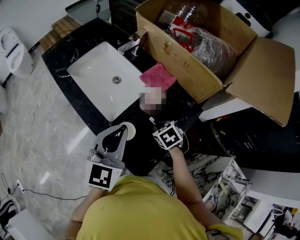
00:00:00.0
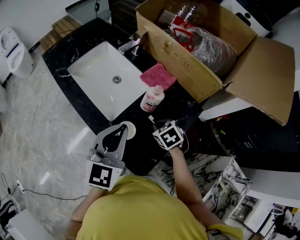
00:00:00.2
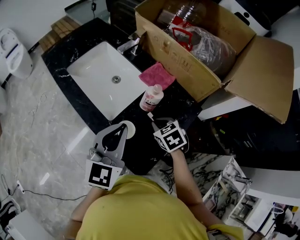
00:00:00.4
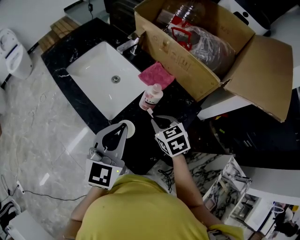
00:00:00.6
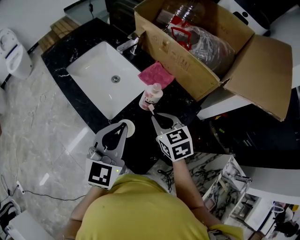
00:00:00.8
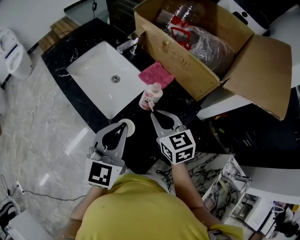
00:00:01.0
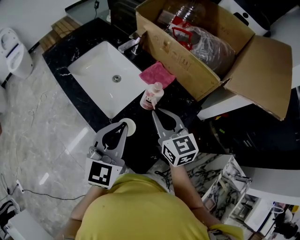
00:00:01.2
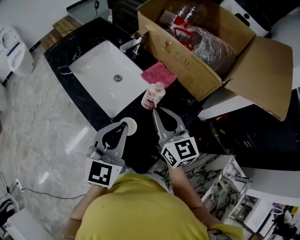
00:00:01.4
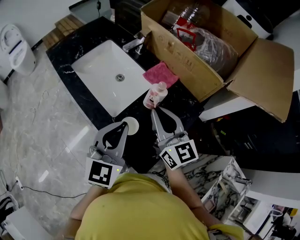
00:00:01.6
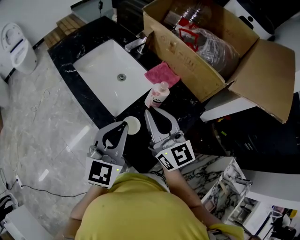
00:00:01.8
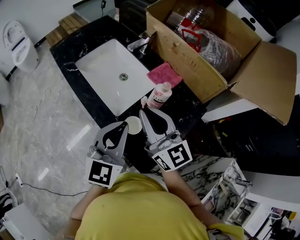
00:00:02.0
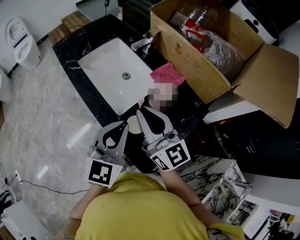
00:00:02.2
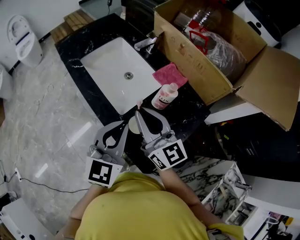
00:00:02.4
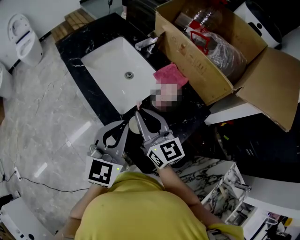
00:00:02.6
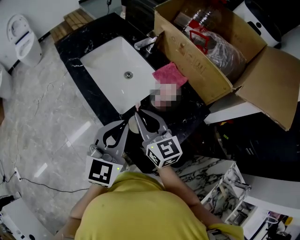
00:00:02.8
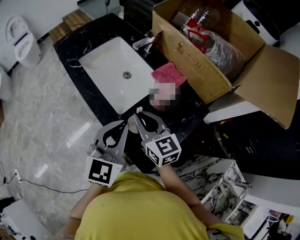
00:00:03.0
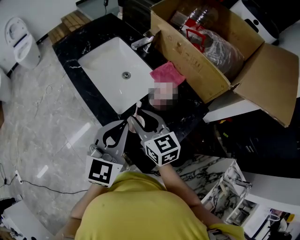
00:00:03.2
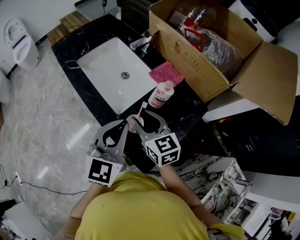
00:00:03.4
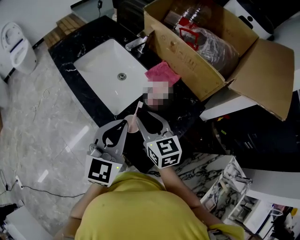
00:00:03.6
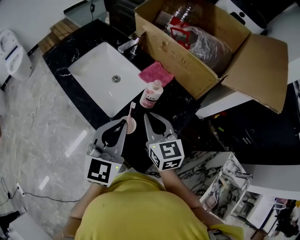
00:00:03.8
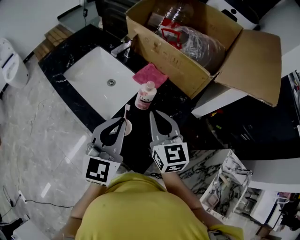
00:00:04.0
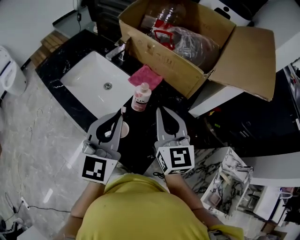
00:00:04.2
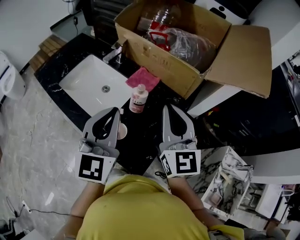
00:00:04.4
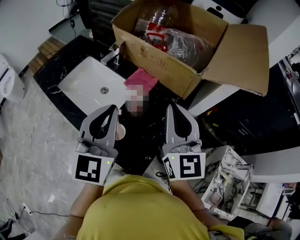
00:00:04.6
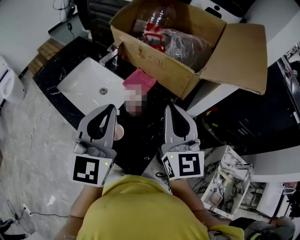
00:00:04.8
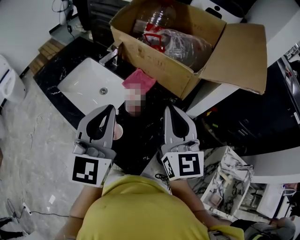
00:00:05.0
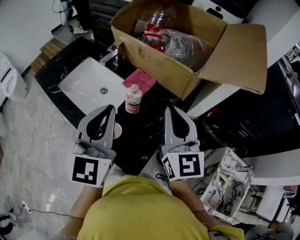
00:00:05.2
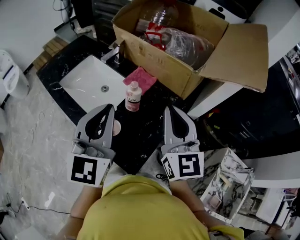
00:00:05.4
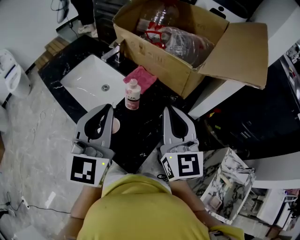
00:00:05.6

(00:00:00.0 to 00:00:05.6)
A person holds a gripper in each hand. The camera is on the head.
00:00:00.0 - 00:00:01.4: The right gripper shifts some 20 cm upward, and points its fingers approximately 60 degrees further upward.
00:00:01.4 - 00:00:02.8: The right gripper goes approximately 10 cm to the left.
00:00:02.8 - 00:00:04.2: The left gripper travels upward and to the right by some 10 cm. The right gripper shifts approximately 15 cm to the right and upward, swivels roughly 30 degrees, and opens, then closes once more.
00:00:04.2 - 00:00:05.6: The left gripper shifts roughly 5 cm upward. The right gripper goes some 5 cm to the right.

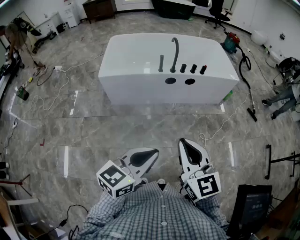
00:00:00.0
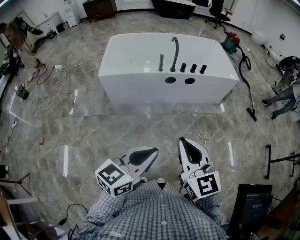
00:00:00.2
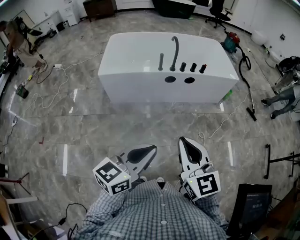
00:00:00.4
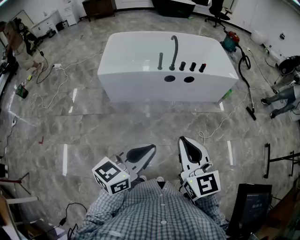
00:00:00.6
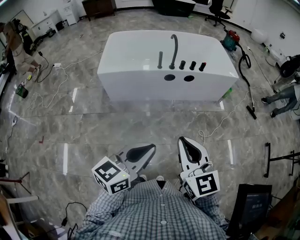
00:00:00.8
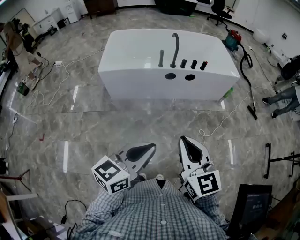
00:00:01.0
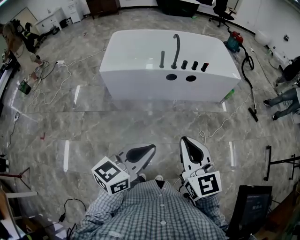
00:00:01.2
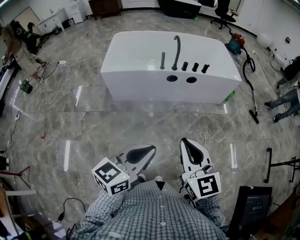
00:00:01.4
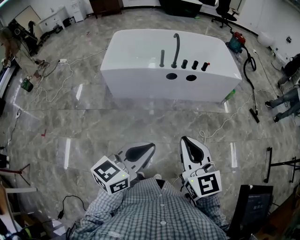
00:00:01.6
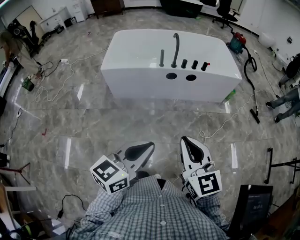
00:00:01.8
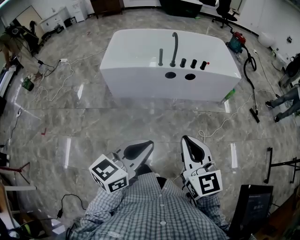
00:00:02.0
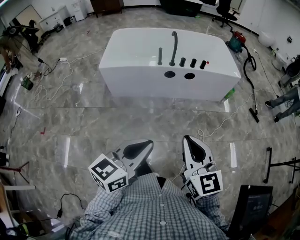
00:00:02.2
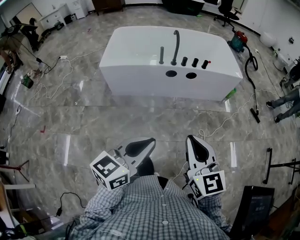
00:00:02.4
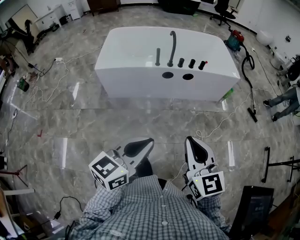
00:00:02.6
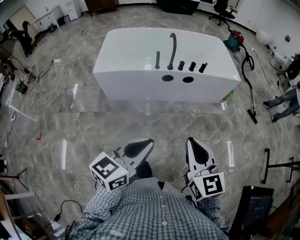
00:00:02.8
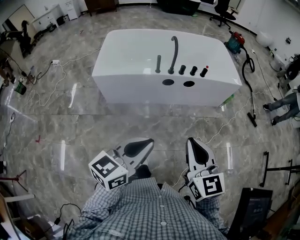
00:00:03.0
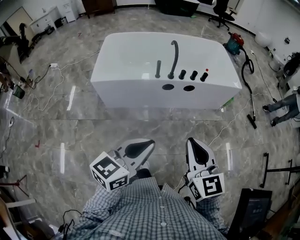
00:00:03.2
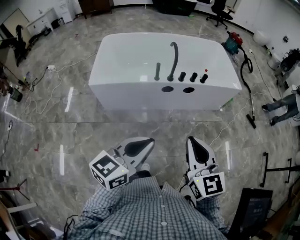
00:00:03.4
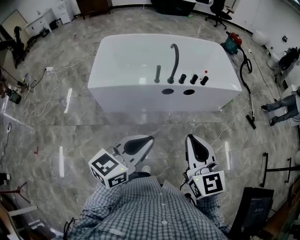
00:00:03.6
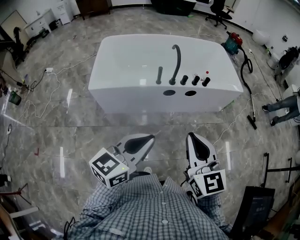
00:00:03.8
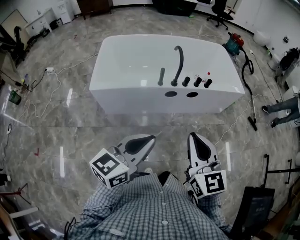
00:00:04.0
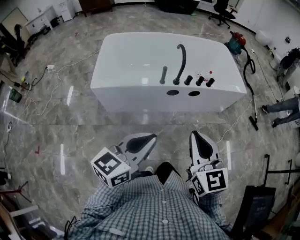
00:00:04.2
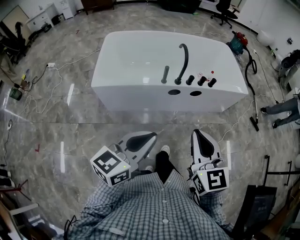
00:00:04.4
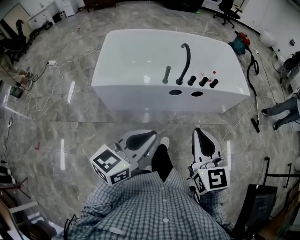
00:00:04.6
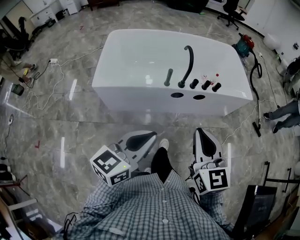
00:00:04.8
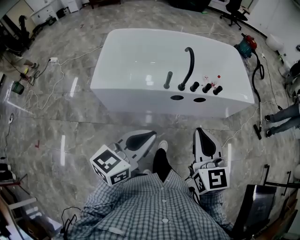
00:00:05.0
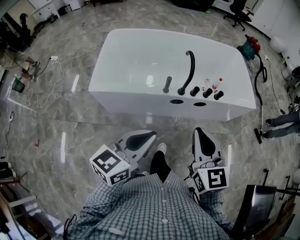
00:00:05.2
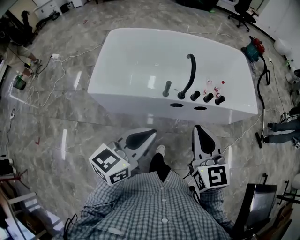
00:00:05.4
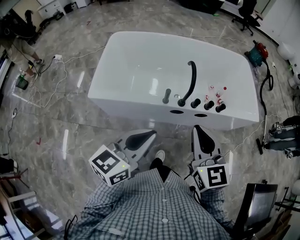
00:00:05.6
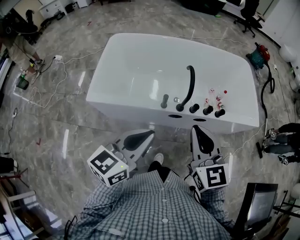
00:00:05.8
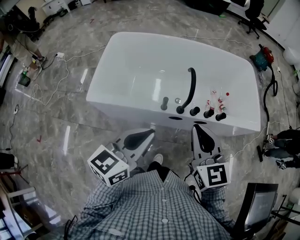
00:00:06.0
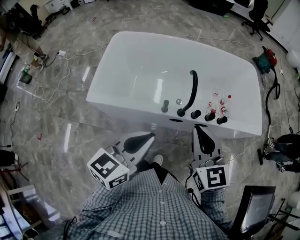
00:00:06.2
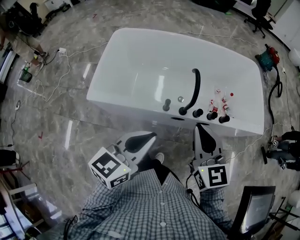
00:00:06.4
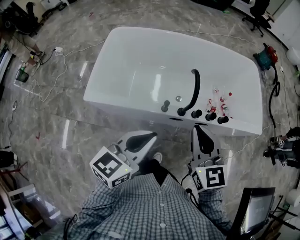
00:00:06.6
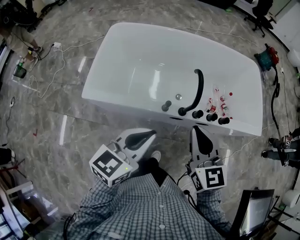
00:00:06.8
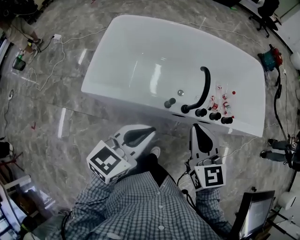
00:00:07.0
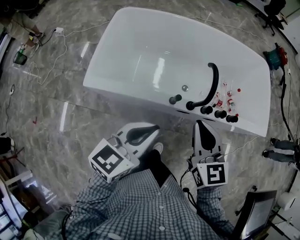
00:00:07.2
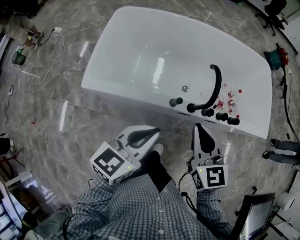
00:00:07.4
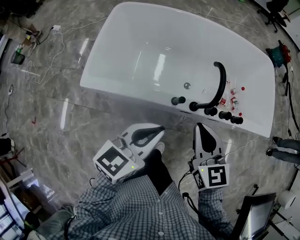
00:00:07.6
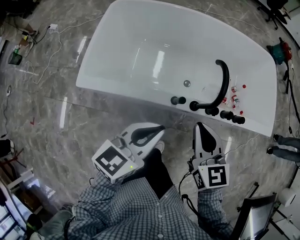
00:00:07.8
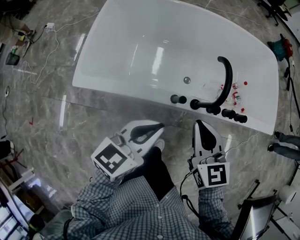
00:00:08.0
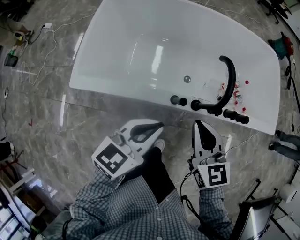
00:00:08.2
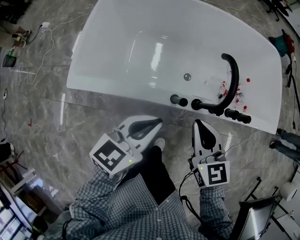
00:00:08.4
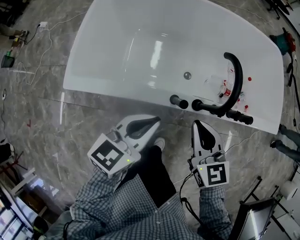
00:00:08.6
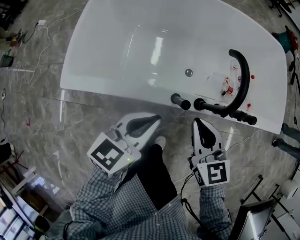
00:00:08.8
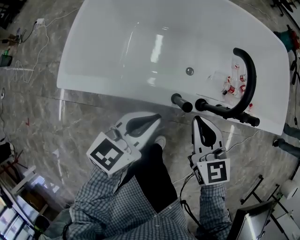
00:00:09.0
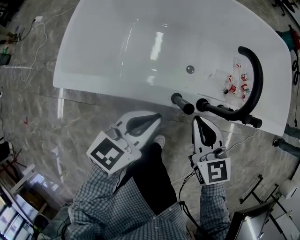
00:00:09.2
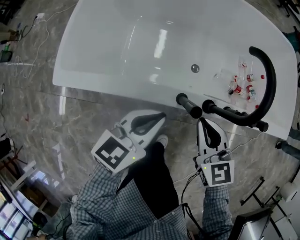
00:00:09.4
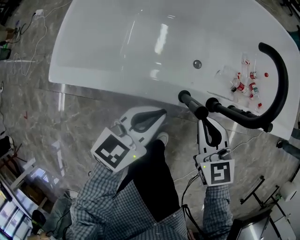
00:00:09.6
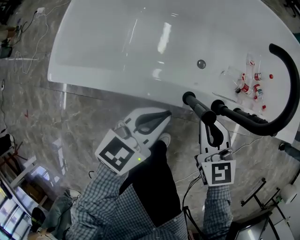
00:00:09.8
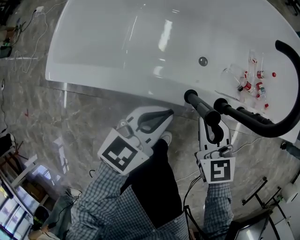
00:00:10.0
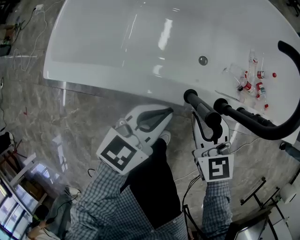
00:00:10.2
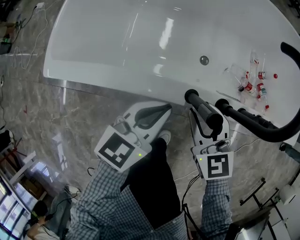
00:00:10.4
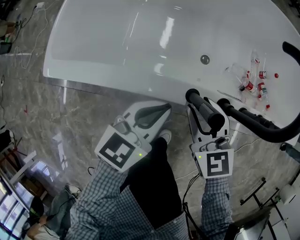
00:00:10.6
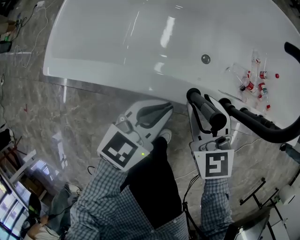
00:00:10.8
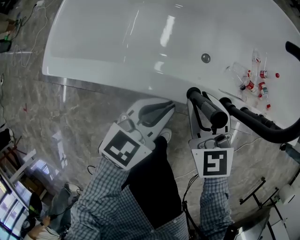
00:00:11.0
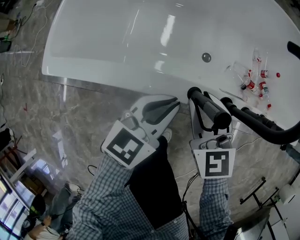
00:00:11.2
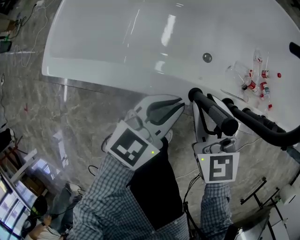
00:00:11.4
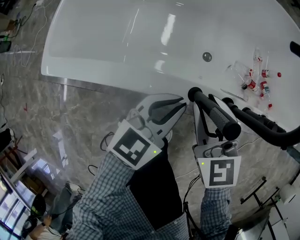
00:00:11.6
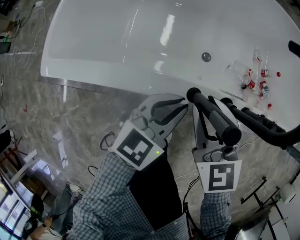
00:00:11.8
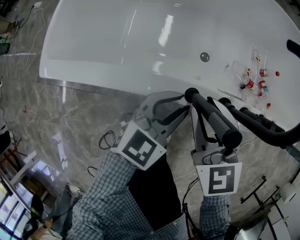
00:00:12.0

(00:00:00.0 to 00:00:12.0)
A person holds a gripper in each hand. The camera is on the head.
00:00:00.0 - 00:00:01.6: The right gripper travels to the right by approximately 5 cm.
00:00:01.6 - 00:00:03.0: The two grippers go some 15 cm forward.
00:00:03.0 - 00:00:04.4: The grippers both shift forward and to the left by some 20 cm.
00:00:04.4 - 00:00:06.0: Both grippers move forward, about 35 cm.
00:00:06.0 - 00:00:07.6: The right gripper heads downward, to the left and forward, covering some 20 cm. The left gripper shifts some 15 cm downward, forward and to the left.
00:00:07.6 - 00:00:09.0: Both grippers travel together downward and forward, about 20 cm.
00:00:09.0 - 00:00:10.4: Both grippers move downward, about 15 cm. The right gripper opens.
00:00:10.4 - 00:00:12.0: The left gripper moves some 5 cm.

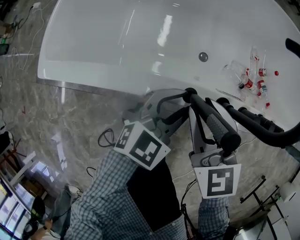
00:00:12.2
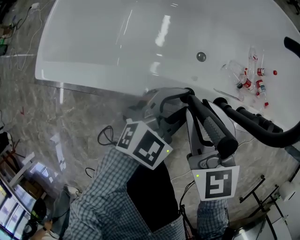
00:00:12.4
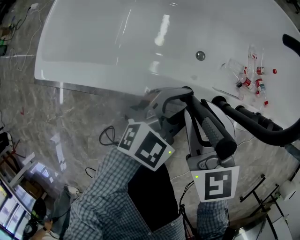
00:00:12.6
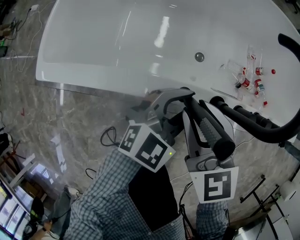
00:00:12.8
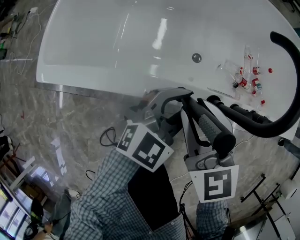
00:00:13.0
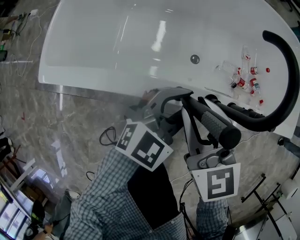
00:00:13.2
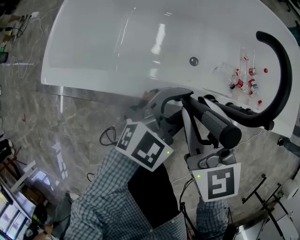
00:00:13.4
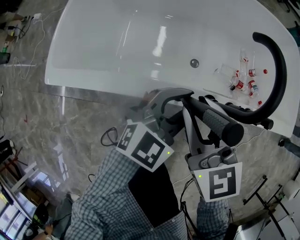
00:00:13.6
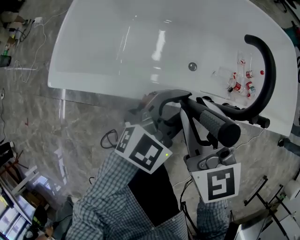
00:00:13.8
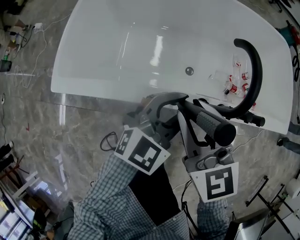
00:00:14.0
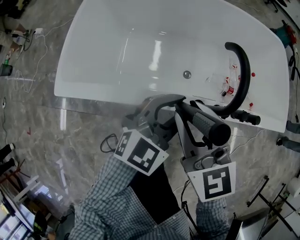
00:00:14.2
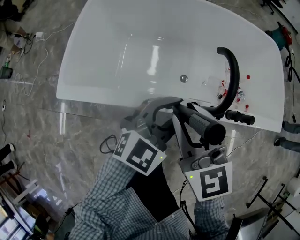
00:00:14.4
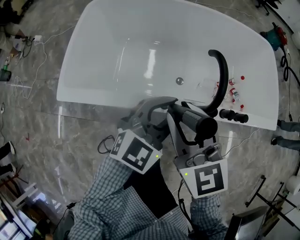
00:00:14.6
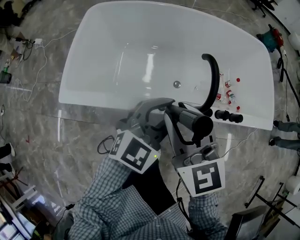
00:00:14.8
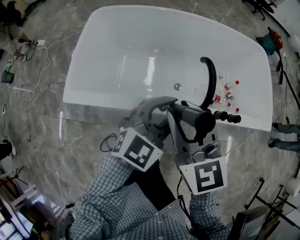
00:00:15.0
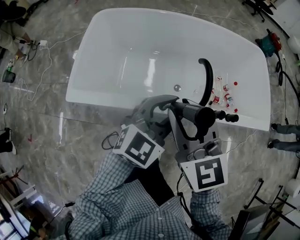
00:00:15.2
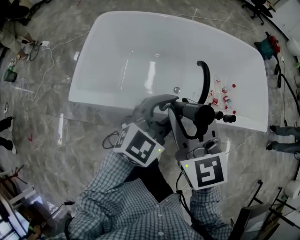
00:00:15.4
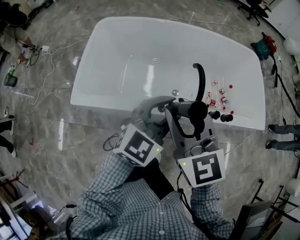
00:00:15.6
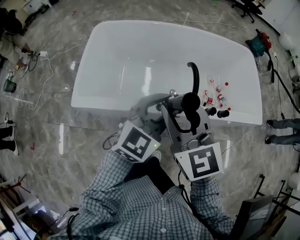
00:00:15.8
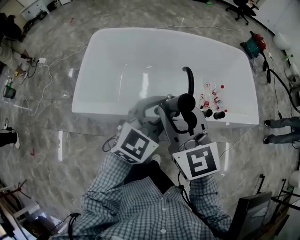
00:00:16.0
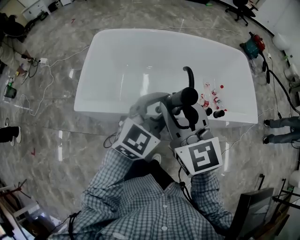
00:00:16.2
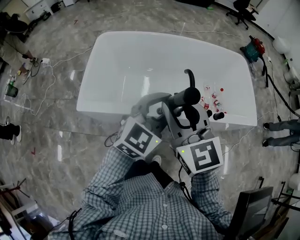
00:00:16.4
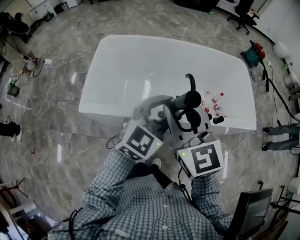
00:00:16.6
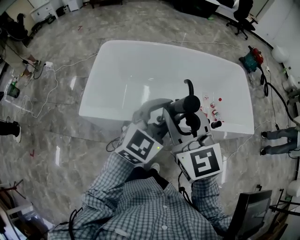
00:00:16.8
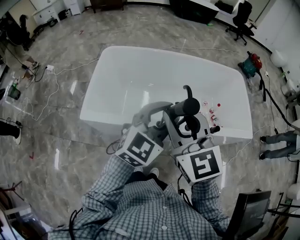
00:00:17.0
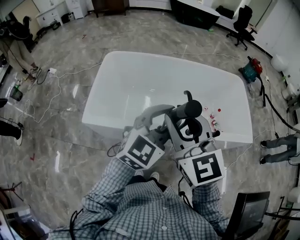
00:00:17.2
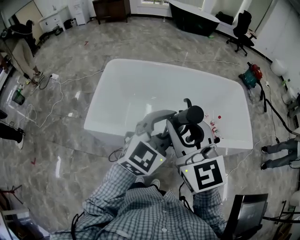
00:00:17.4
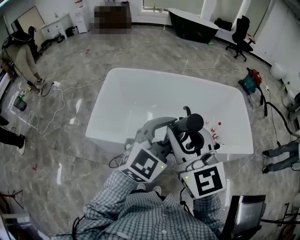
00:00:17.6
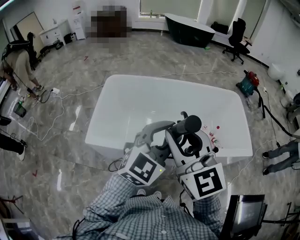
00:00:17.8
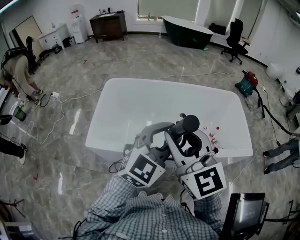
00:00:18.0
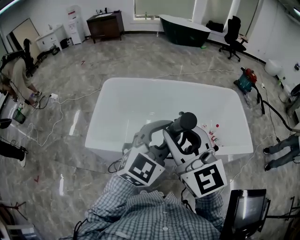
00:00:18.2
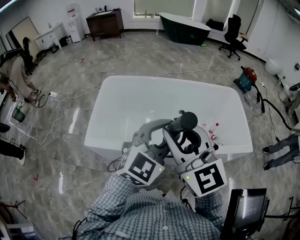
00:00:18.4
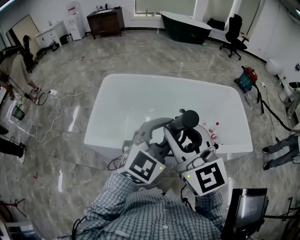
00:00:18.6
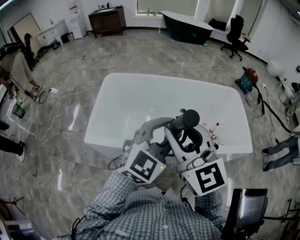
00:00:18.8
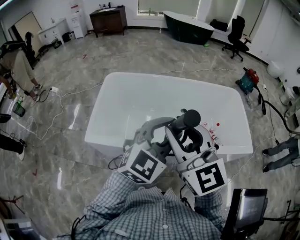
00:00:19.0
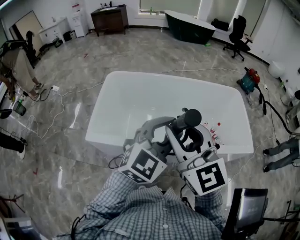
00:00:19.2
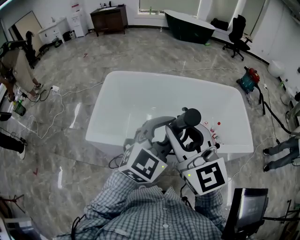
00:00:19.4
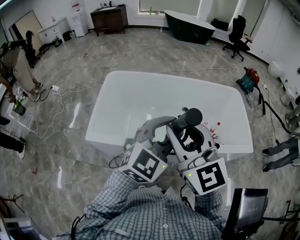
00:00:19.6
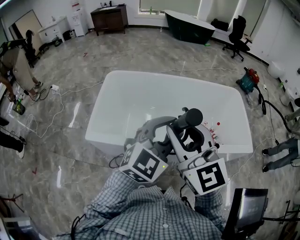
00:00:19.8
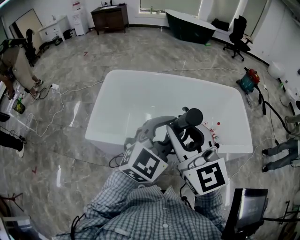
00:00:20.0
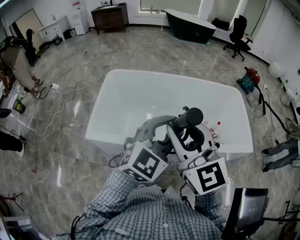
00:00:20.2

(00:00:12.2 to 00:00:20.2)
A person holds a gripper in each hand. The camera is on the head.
00:00:12.2 - 00:00:13.8: The two grippers go about 10 cm upward.
00:00:13.8 - 00:00:15.4: The grippers both shift upward by roughly 20 cm.
00:00:15.4 - 00:00:17.0: The right gripper heads upward and backward, covering some 15 cm. Meanwhile the left gripper goes some 15 cm upward.
00:00:17.0 - 00:00:18.6: The grippers both shift upward by some 5 cm.
00:00:18.6 - 00:00:20.2: Neither gripper changes place.
